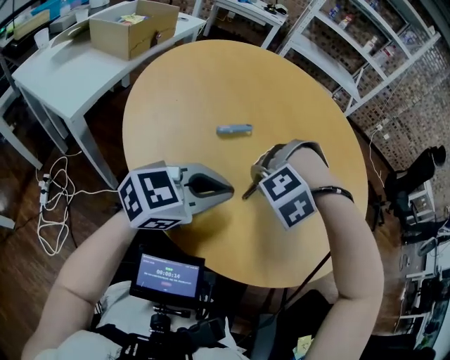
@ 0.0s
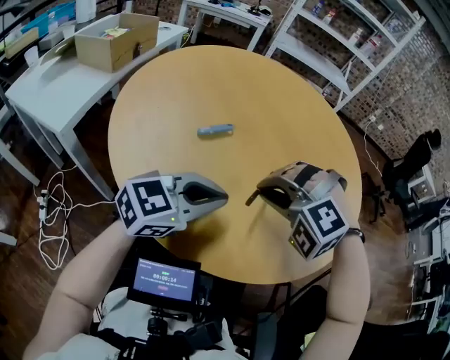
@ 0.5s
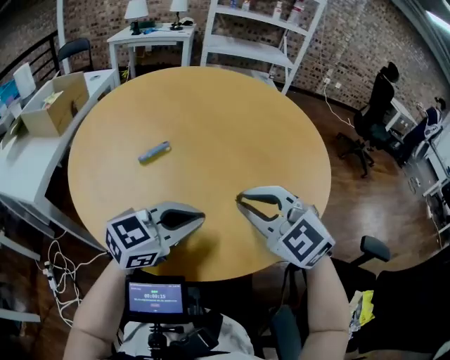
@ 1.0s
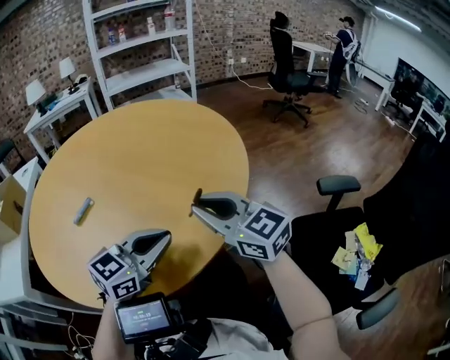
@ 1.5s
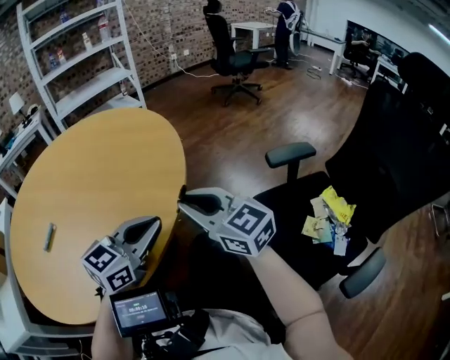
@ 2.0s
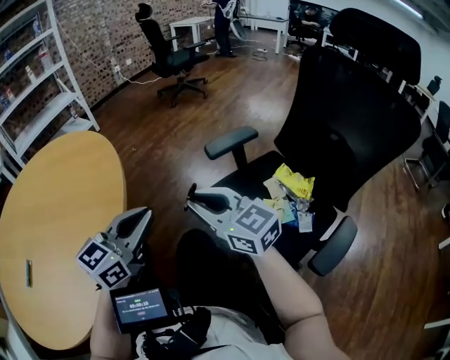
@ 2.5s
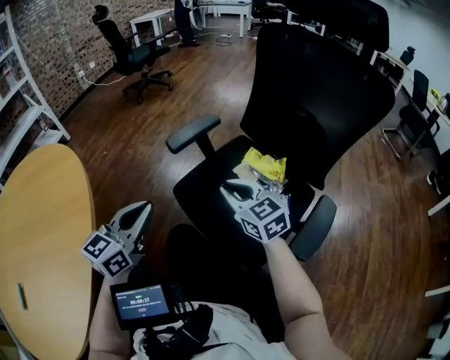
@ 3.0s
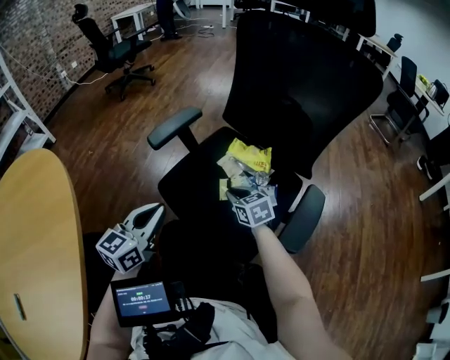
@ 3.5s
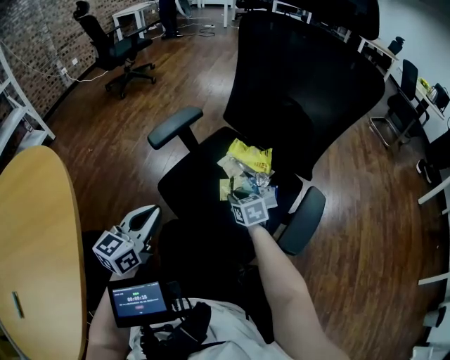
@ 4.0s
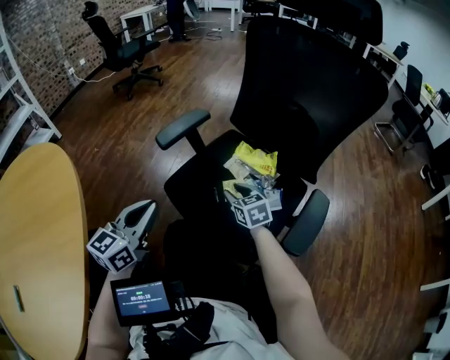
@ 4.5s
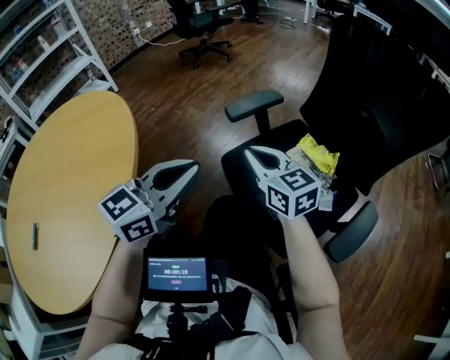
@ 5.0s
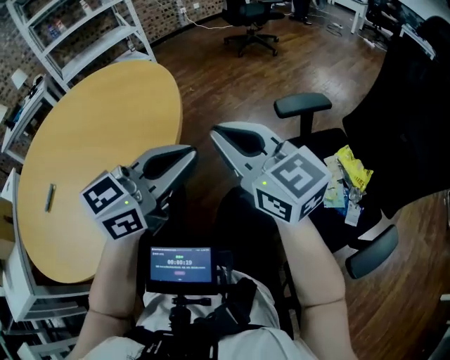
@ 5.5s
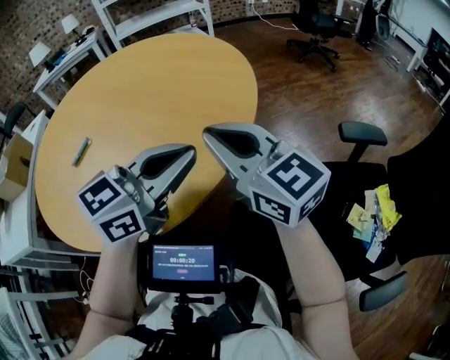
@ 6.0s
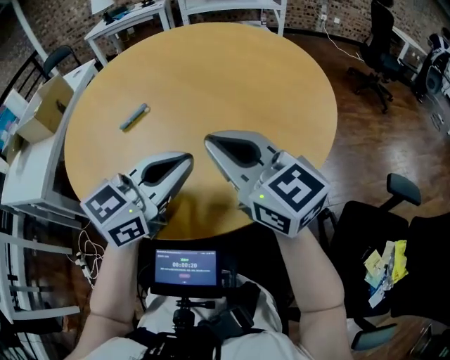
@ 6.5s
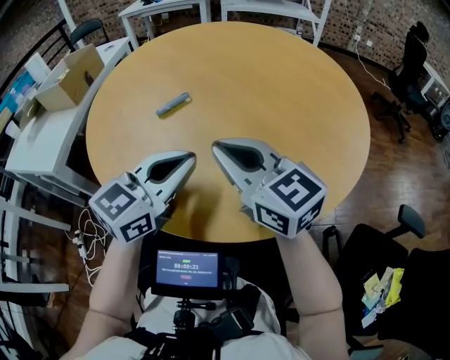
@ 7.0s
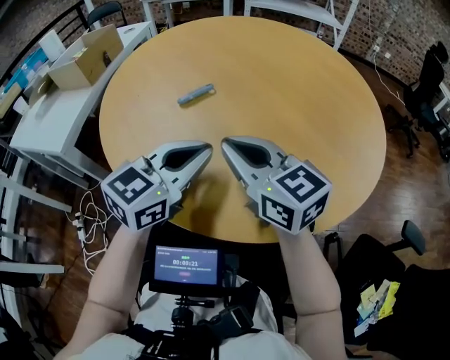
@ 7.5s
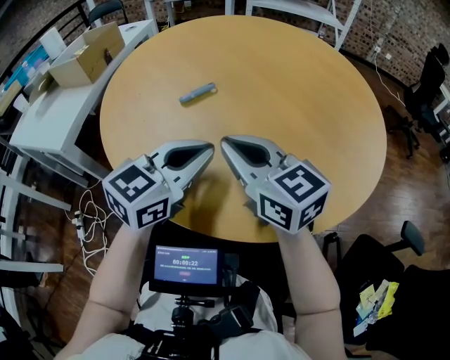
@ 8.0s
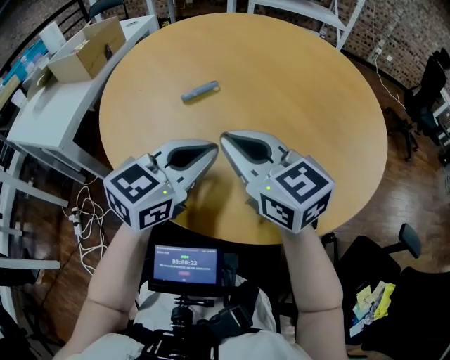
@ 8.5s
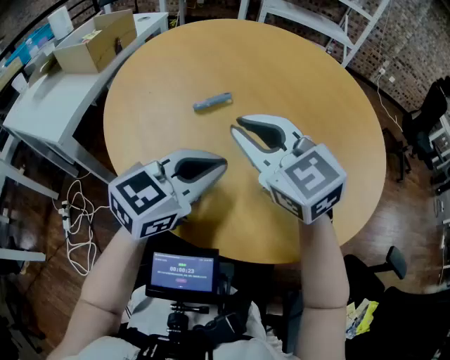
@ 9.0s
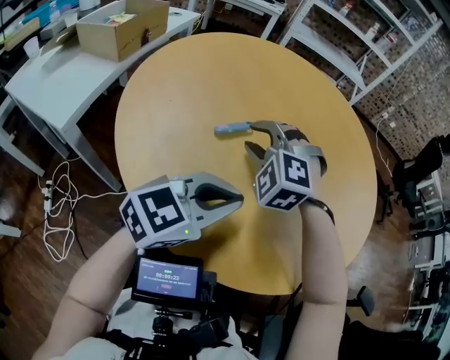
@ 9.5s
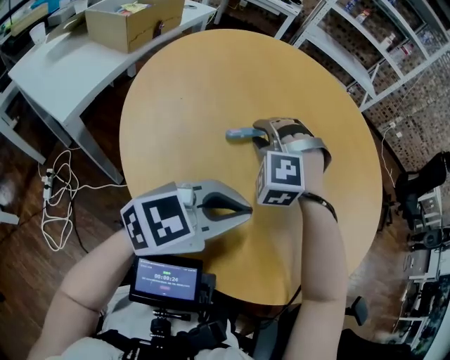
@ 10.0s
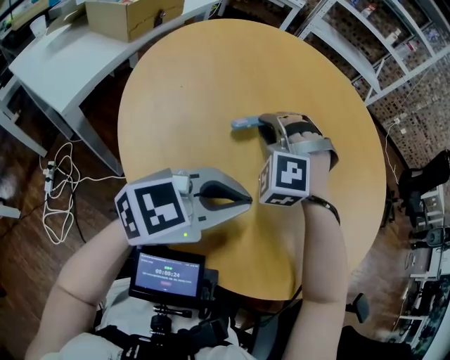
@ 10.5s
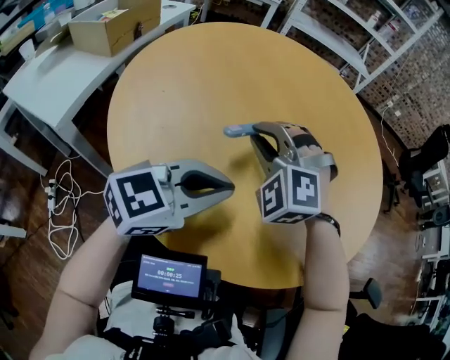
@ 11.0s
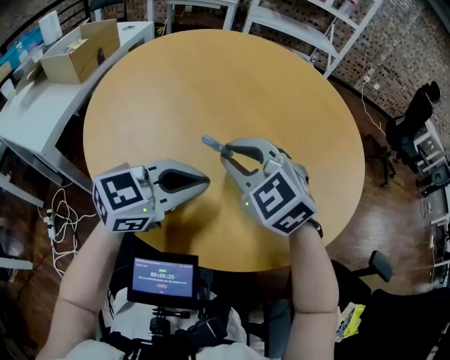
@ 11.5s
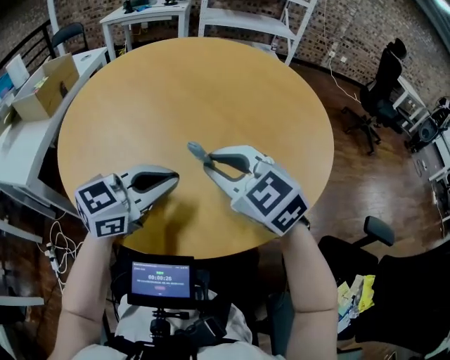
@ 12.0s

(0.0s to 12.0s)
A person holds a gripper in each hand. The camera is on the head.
0.0s - 2.0s: The left gripper shifts by approximately 35 cm, and turns by roughly 20 degrees. Meanwhile the right gripper moves about 35 cm, and angles its fingers upward, by about 70 degrees.
2.0s - 4.0s: The right gripper moves about 60 cm, and points its fingers roughly 40 degrees further downward. Meanwhile the left gripper shifts by roughly 30 cm, and rotates approximately 30 degrees.
4.0s - 6.0s: The right gripper changes place by approximately 60 cm, and angles its fingers upward, by roughly 40 degrees. Meanwhile the left gripper ends up some 35 cm from where it was, and rotates approximately 30 degrees.
6.0s - 8.0s: The left gripper moves about 30 cm, and rotates roughly 30 degrees; the right gripper moves some 30 cm, and turns by approximately 30 degrees.
8.0s - 10.0s: The right gripper goes roughly 20 cm forward, to the left and downward, rotates around the line of its fingers by some 90 degrees, counterclockwise from behind, and opens up.
10.0s - 12.0s: The right gripper moves to the right and backward, roughly 25 cm, and rolls clockwise, seen from behind, by some 70 degrees, while the left gripper moves to the right, about 5 cm.

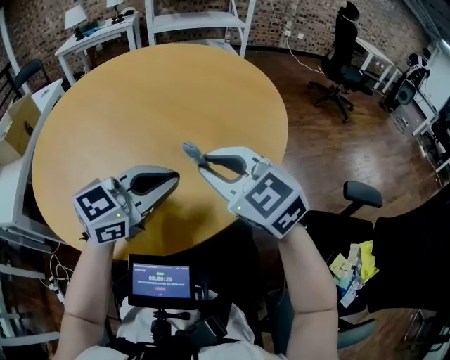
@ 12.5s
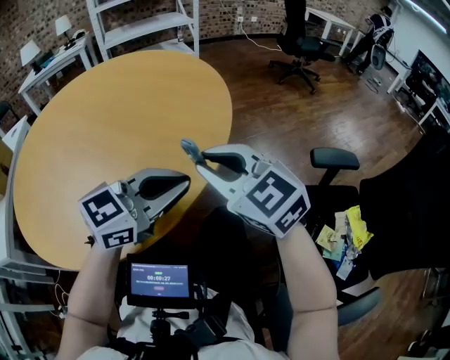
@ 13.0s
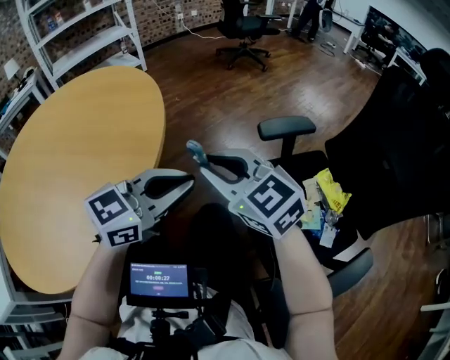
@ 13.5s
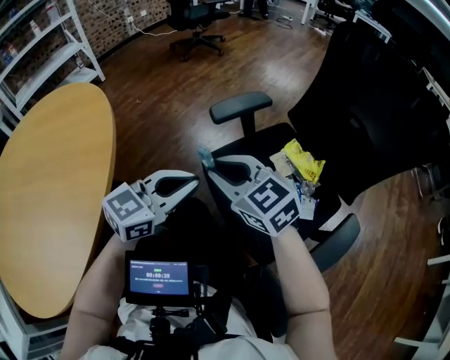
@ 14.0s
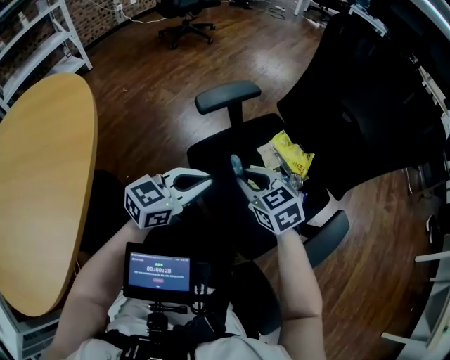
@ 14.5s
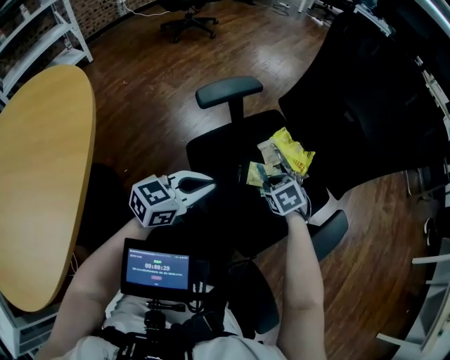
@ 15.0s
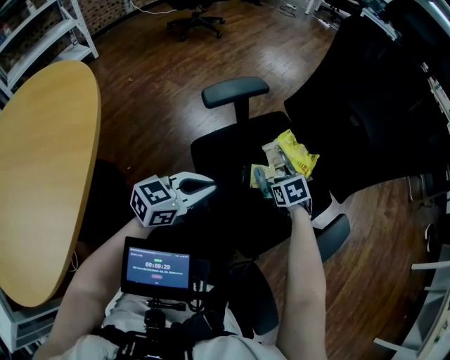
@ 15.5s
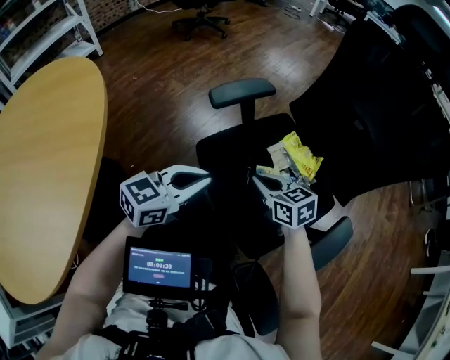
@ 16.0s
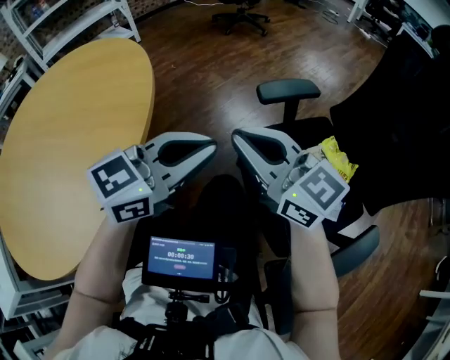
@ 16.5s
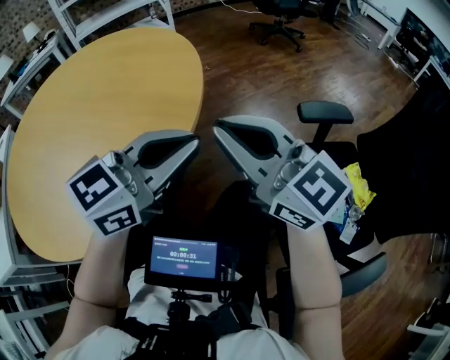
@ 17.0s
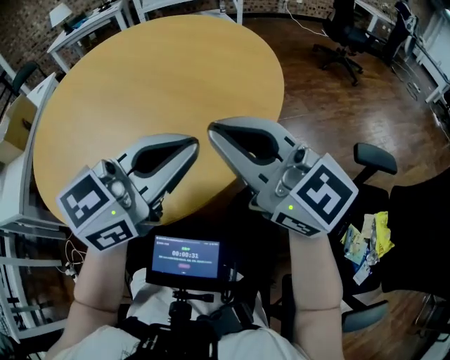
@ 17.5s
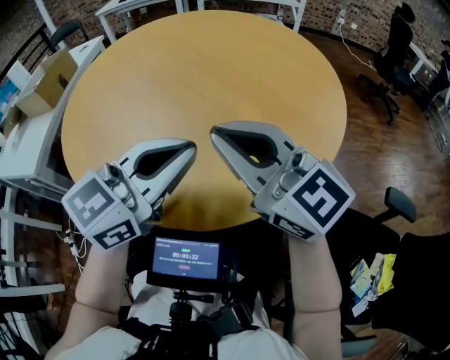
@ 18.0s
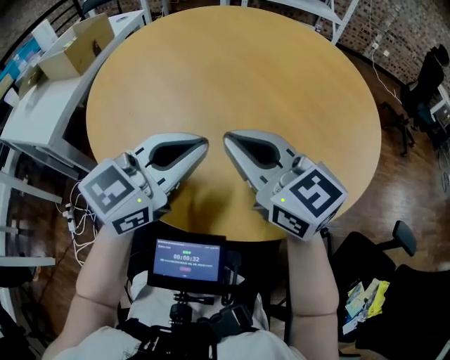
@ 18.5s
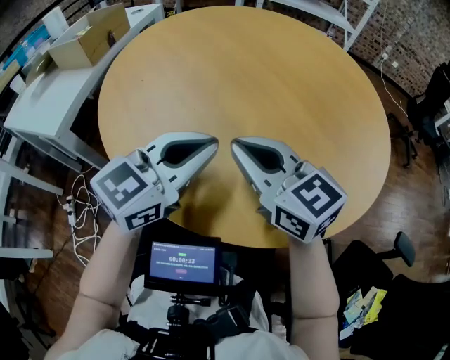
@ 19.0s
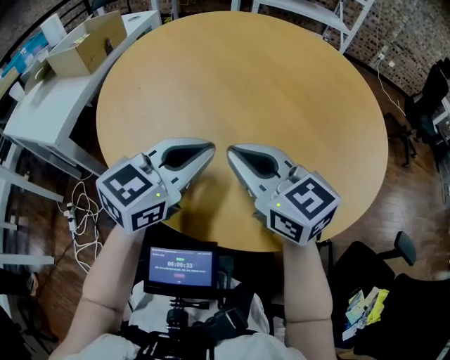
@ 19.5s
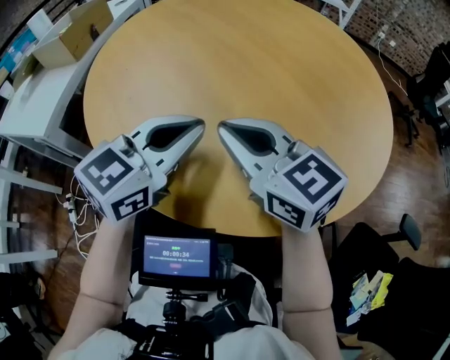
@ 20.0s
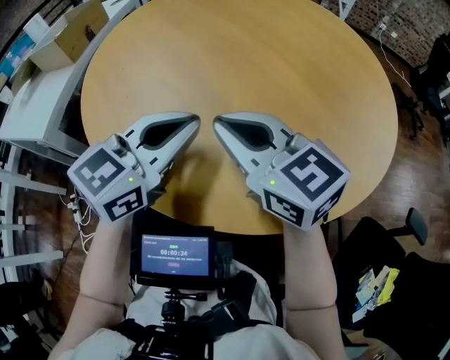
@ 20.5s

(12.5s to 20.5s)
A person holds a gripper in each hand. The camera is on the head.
12.5s - 14.5s: Both grippers are carried roughly 50 cm. The right gripper swivels approximately 70 degrees; the left gripper turns by about 50 degrees.
14.5s - 16.5s: Both grippers move upward, some 15 cm. The right gripper tilts its fingers approximately 40 degrees upward.
16.5s - 18.5s: The two grippers travel together, roughly 50 cm. The left gripper swivels roughly 60 degrees. Meanwhile the right gripper turns by approximately 50 degrees.
18.5s - 20.5s: The left gripper ends up about 5 cm from where it was.

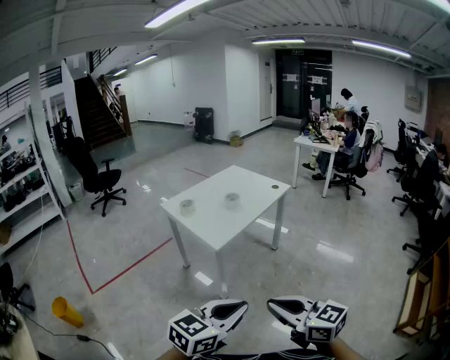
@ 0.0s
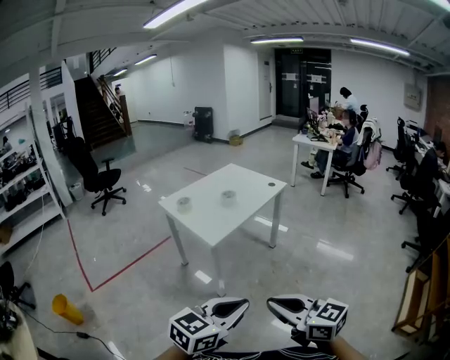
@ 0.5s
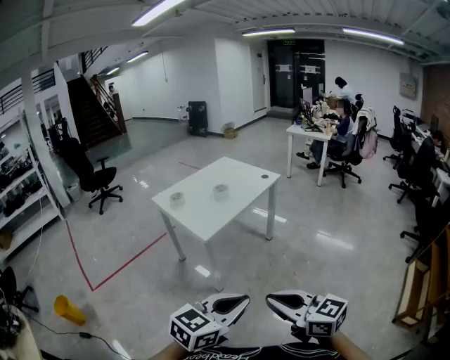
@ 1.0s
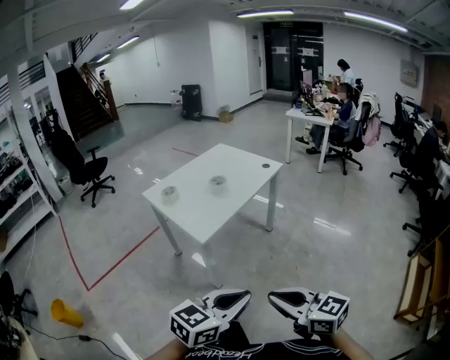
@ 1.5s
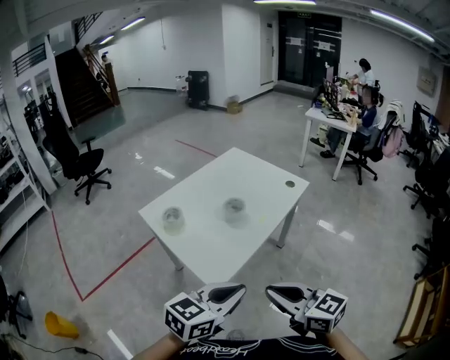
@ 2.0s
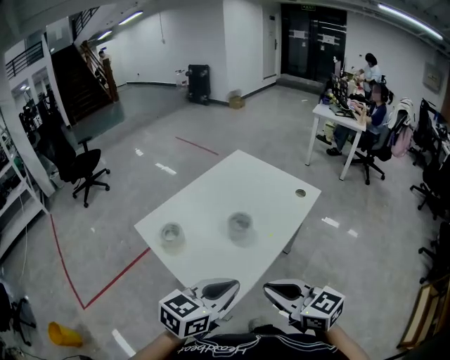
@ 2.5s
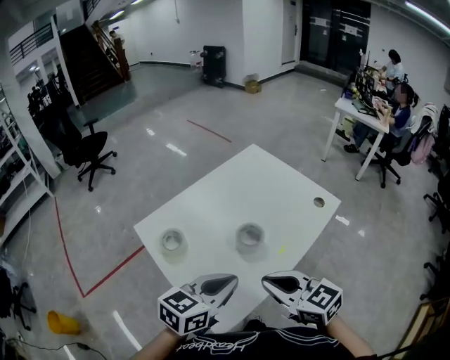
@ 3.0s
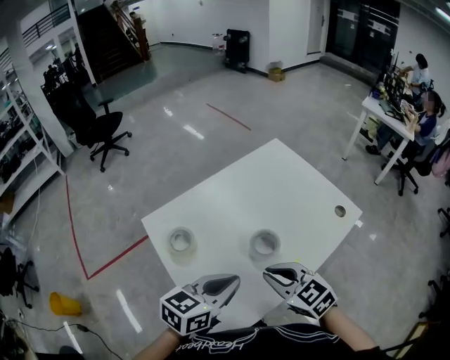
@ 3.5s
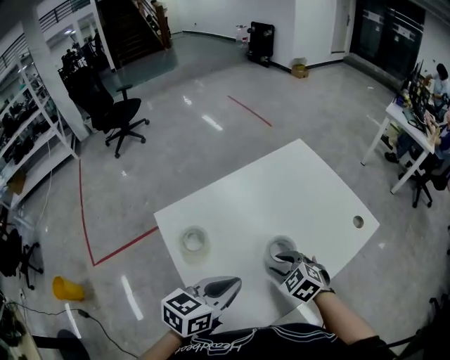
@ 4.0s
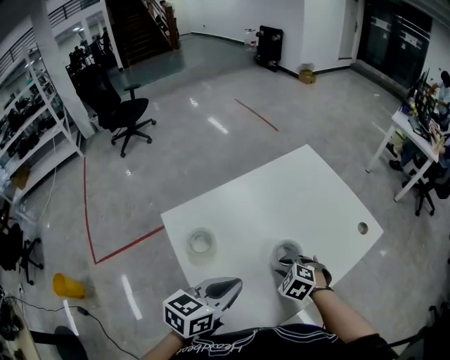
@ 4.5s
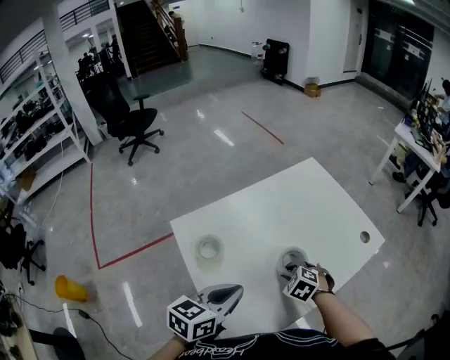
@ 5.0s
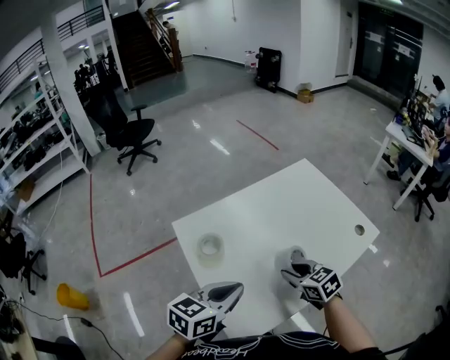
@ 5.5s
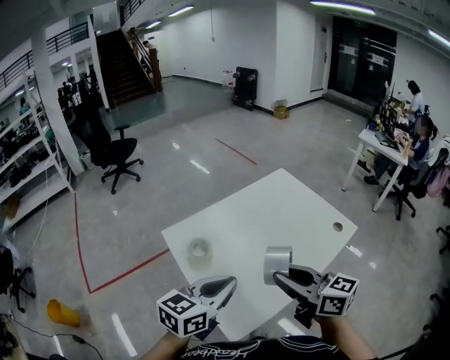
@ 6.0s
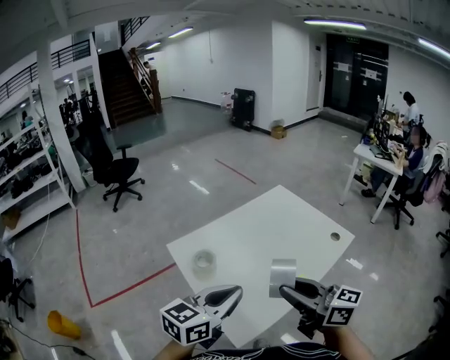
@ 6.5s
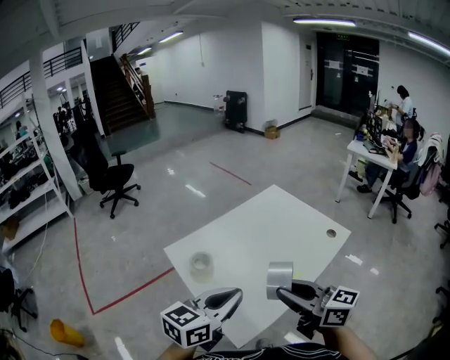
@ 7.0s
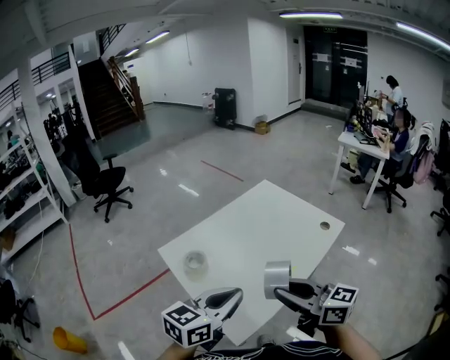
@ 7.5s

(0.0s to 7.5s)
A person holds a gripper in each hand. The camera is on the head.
0.0s - 2.0s: Both grippers travel together forward, some 30 cm.
2.0s - 4.0s: The right gripper shifts some 40 cm forward and downward, angles its fingers downward, by about 40 degrees, and opens. Meanwhile the left gripper travels forward by some 25 cm, and rotates roughly 30 degrees.
4.0s - 5.5s: The right gripper rotates some 30 degrees.
5.5s - 7.5s: The right gripper shifts roughly 25 cm upward and backward, and points its fingers roughly 40 degrees further upward; the left gripper heads upward and backward, covering roughly 10 cm.
